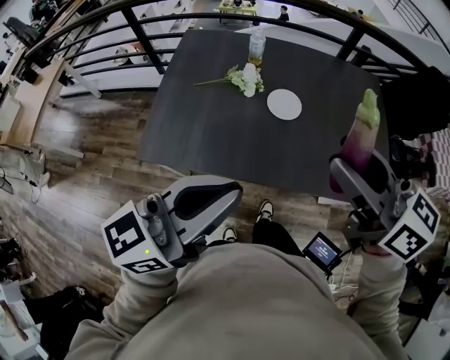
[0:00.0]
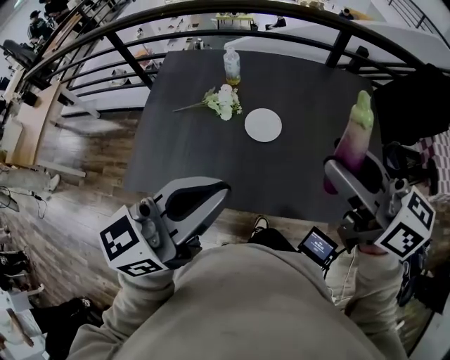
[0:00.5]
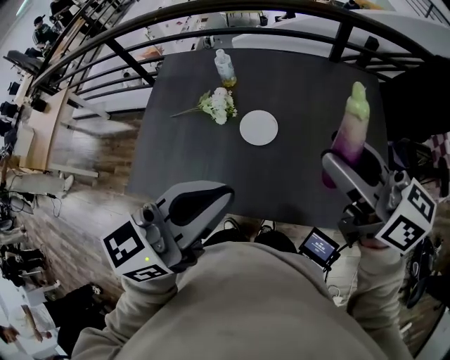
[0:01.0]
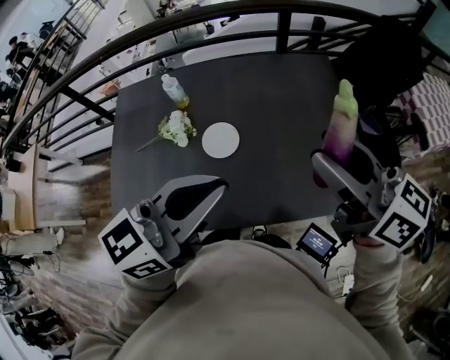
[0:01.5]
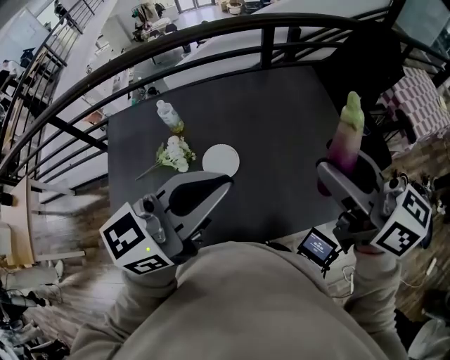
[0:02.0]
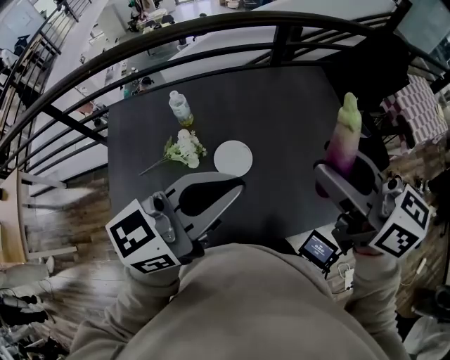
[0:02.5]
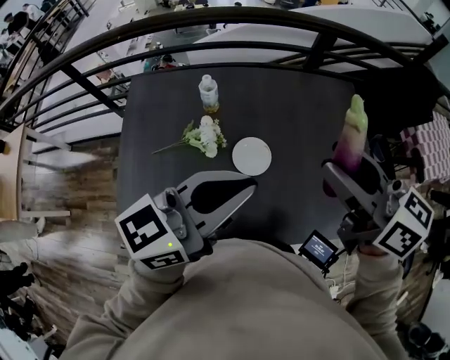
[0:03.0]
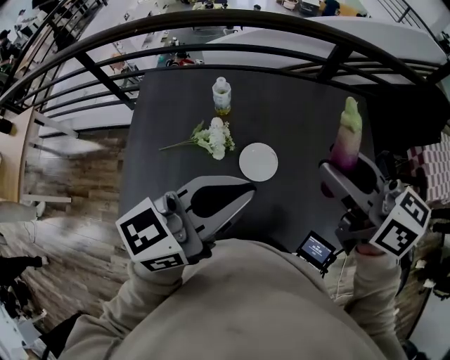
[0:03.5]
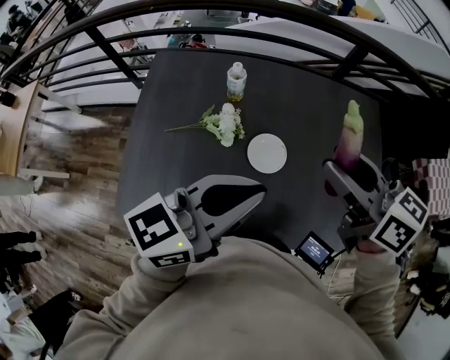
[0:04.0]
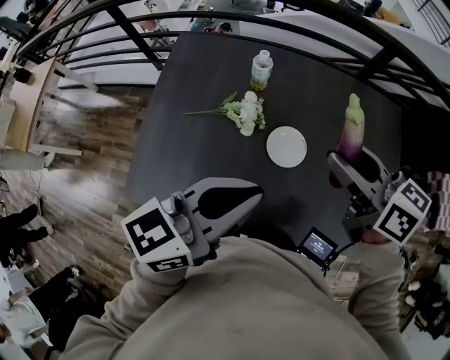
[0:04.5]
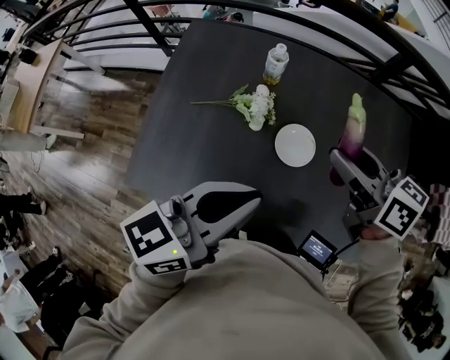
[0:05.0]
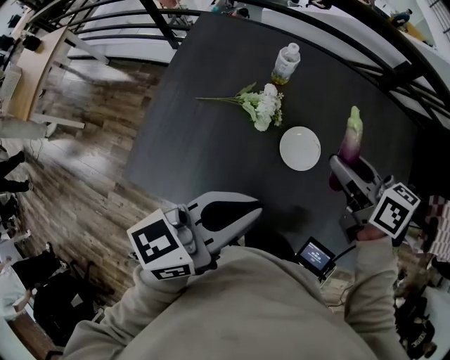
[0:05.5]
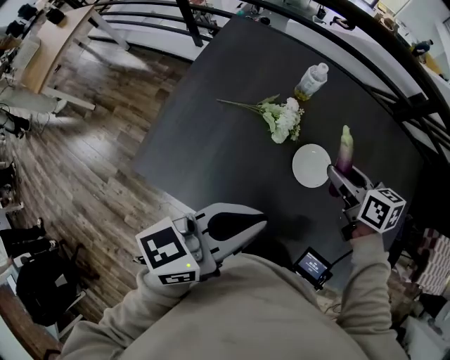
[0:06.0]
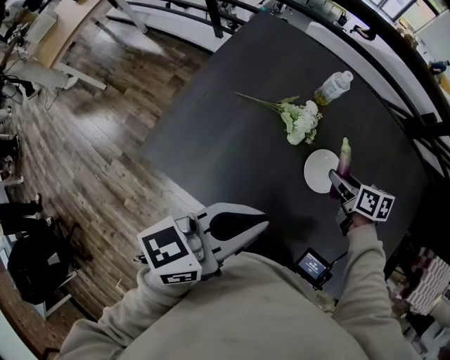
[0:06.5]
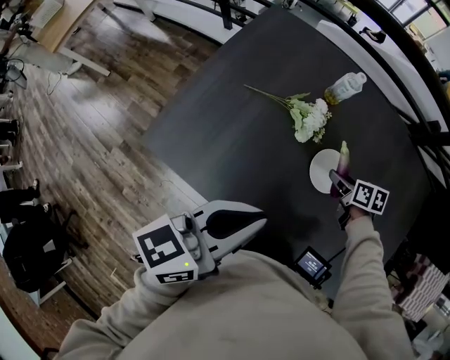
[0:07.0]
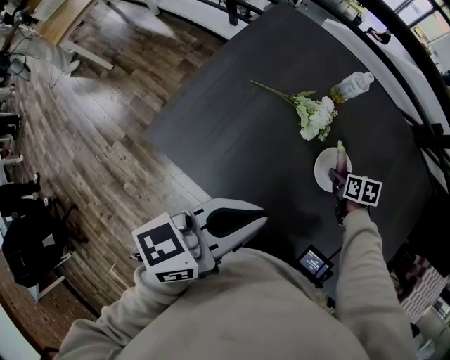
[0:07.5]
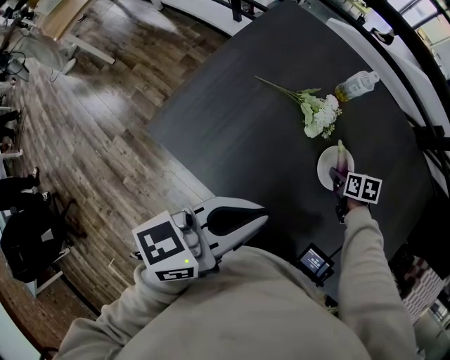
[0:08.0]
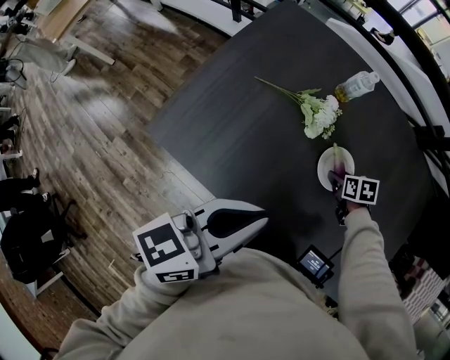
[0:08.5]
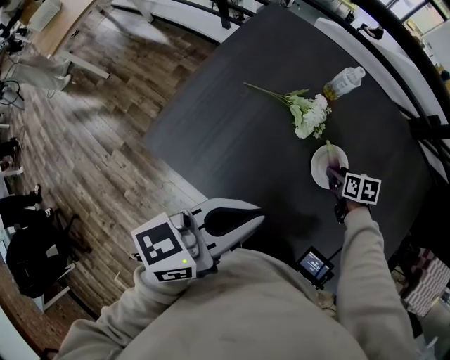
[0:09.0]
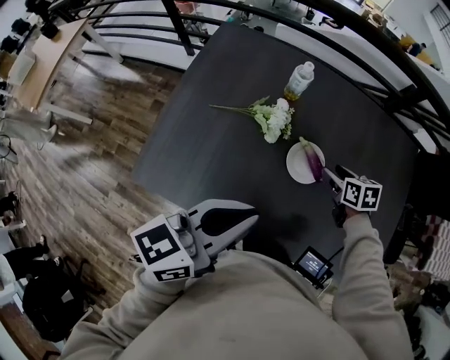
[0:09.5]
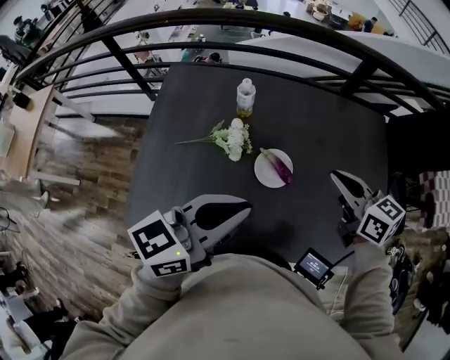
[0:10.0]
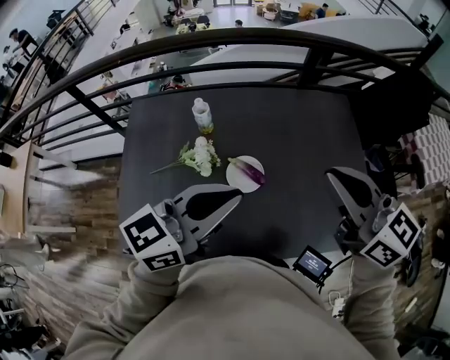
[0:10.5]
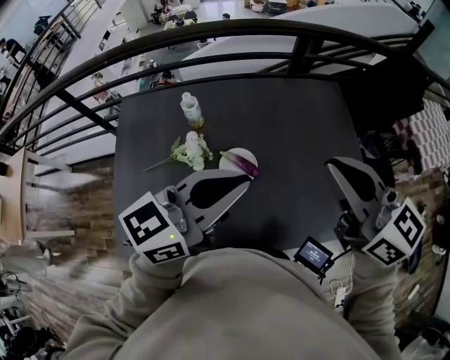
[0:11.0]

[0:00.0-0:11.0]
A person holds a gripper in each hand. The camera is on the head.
0:00.0 to 0:02.0: The left gripper is displaced forward and to the right by some 25 cm, and turns by some 20 degrees. Meanwhile the right gripper travels to the right and forward by roughly 20 cm, and rotates some 20 degrees.
0:02.0 to 0:03.5: The grippers both shift to the left by roughly 15 cm.
0:03.5 to 0:05.5: The right gripper travels downward by some 20 cm, and turns by roughly 20 degrees. Meanwhile the left gripper heads downward and to the left, covering some 10 cm, and changes its angle by approximately 20 degrees.
0:05.5 to 0:07.5: The right gripper shifts some 30 cm downward, and tips its fingers downward by about 40 degrees; the left gripper goes about 5 cm to the left.
0:07.5 to 0:09.0: The grippers make only small movements.
0:09.0 to 0:11.0: The left gripper changes place by some 25 cm, and swivels about 40 degrees; the right gripper goes about 50 cm upward, angles its fingers upward, by roughly 60 degrees, and closes up.

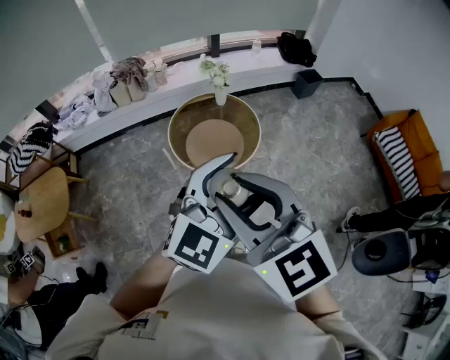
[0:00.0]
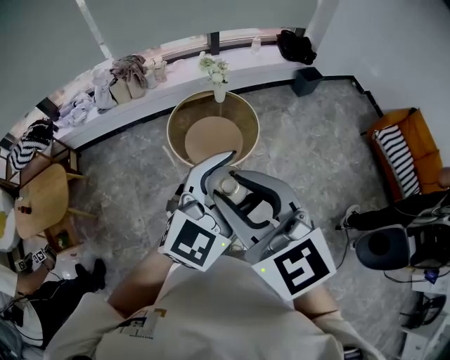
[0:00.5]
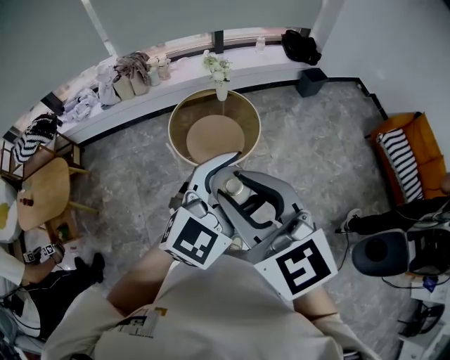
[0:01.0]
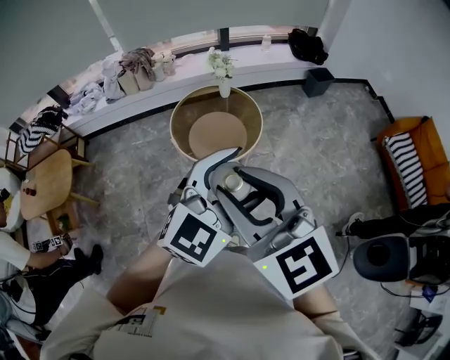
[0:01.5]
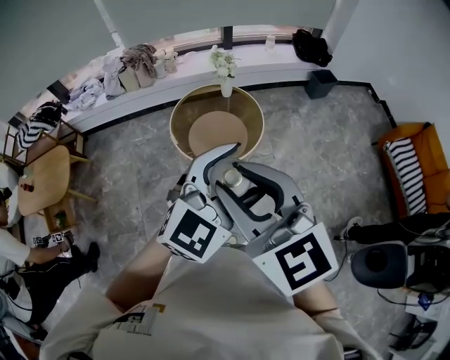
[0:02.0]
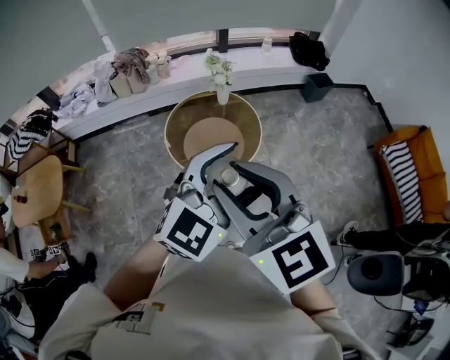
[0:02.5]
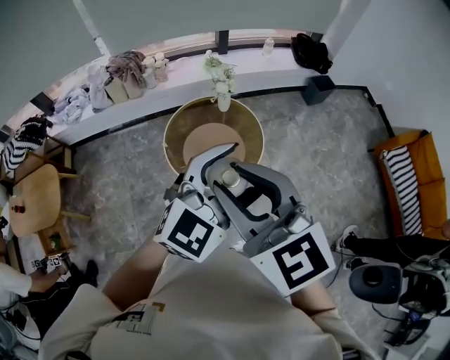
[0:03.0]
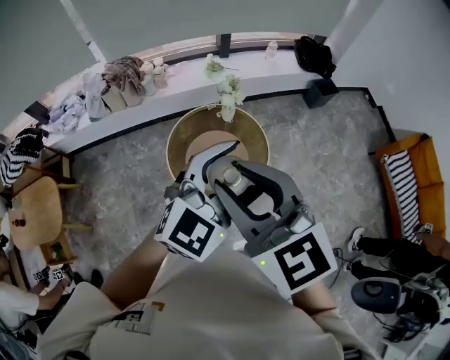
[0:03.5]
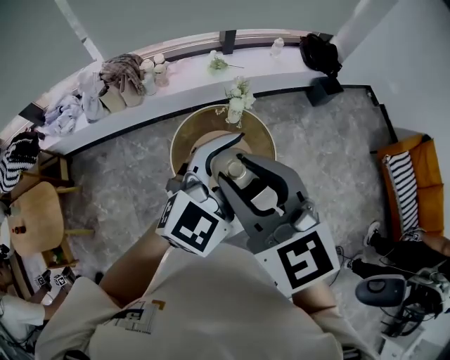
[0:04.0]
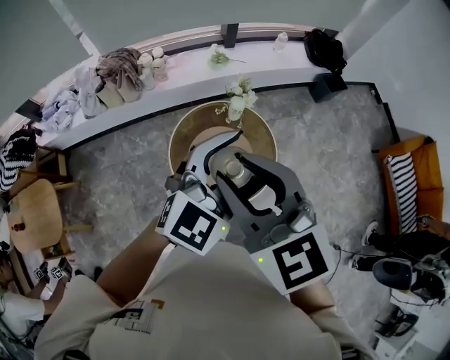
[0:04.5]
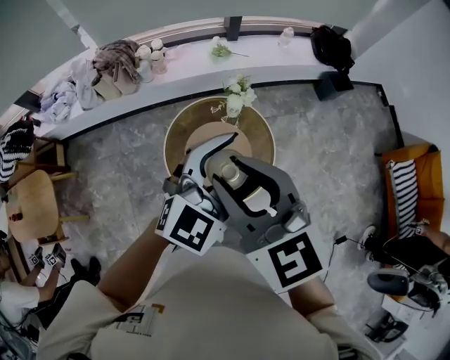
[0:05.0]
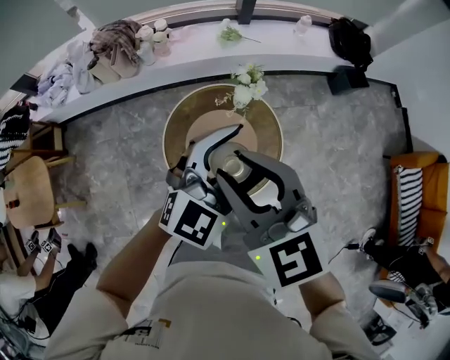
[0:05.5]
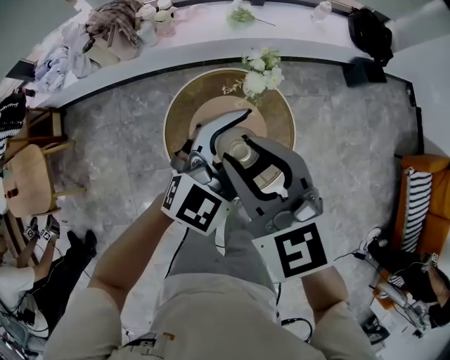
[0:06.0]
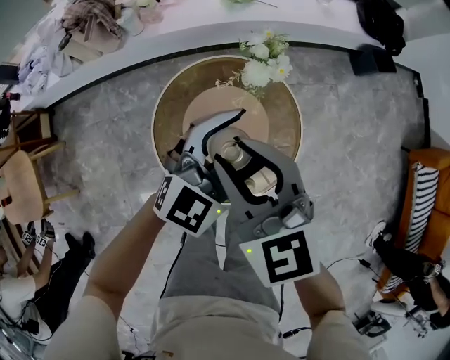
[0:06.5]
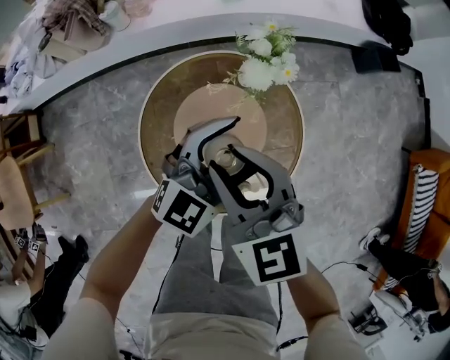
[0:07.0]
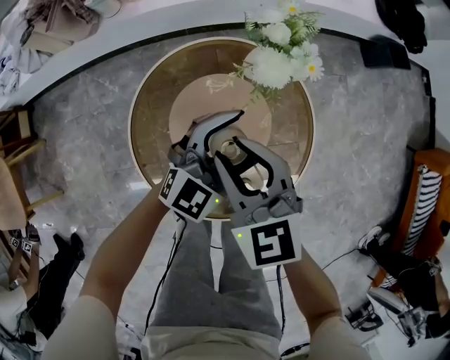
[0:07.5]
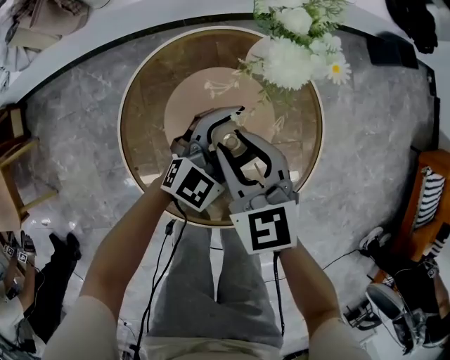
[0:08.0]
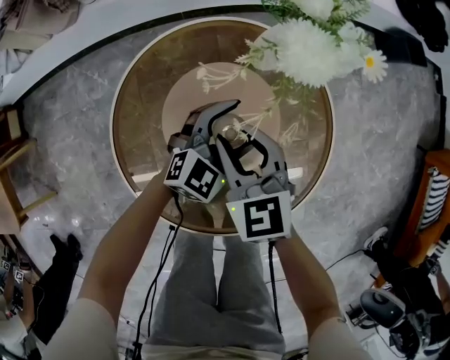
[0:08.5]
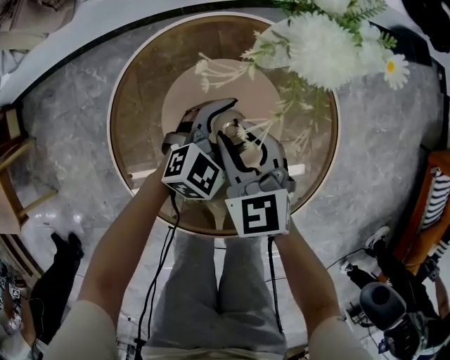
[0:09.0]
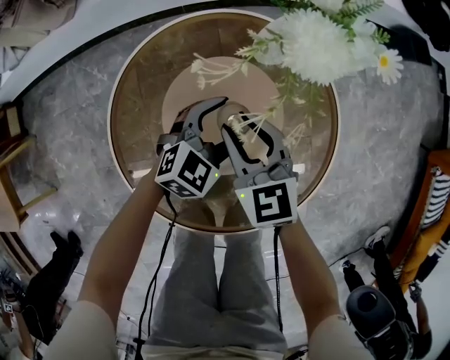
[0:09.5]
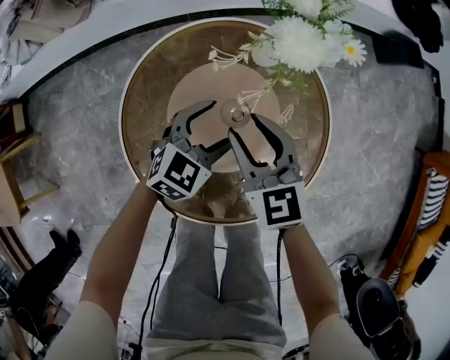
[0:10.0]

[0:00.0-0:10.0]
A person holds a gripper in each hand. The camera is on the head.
0:00.0 to 0:02.0: The two grippers go approximately 10 cm to the right.
0:02.0 to 0:04.0: The two grippers go roughly 40 cm forward and to the left.
0:04.0 to 0:06.0: The grippers both shift downward and forward by roughly 25 cm.
0:06.0 to 0:08.0: The two grippers go about 40 cm downward.
0:08.0 to 0:10.0: The left gripper travels downward and to the left by approximately 10 cm, and turns by some 20 degrees.

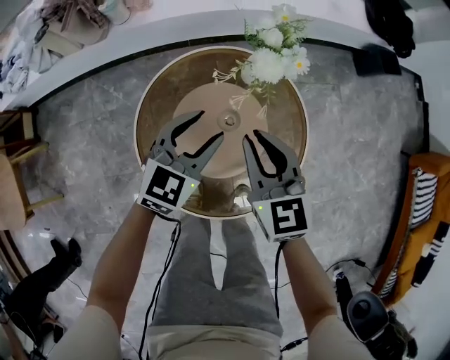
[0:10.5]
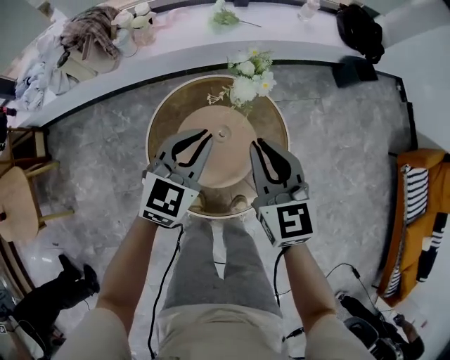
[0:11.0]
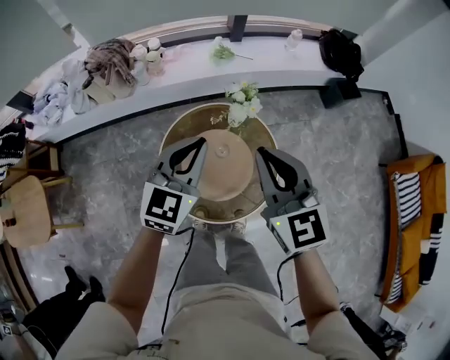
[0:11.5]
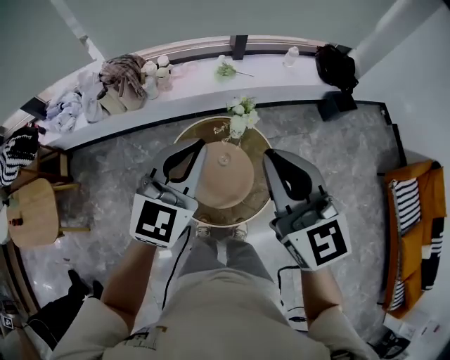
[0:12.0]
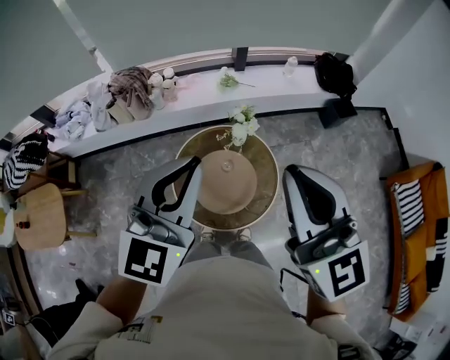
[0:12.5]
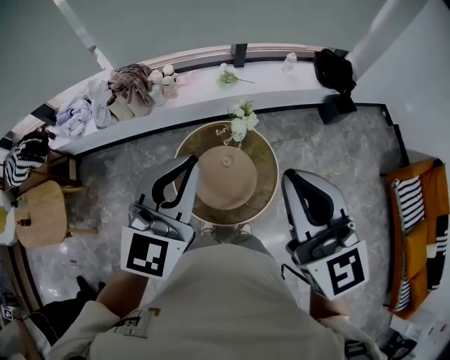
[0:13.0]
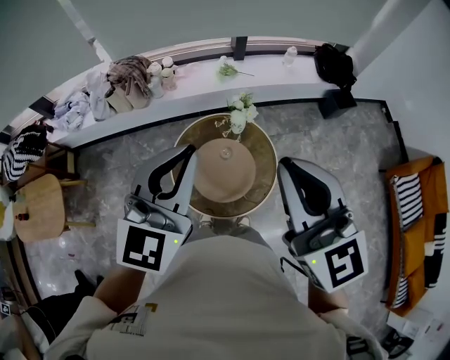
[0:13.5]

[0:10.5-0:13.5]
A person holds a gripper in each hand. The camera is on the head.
0:10.5 to 0:12.0: Both grippers move upward, roughly 50 cm. The right gripper turns by approximately 20 degrees. Meanwhile the left gripper turns by some 20 degrees, and closes.
0:12.0 to 0:13.5: The grippers both shift upward and backward by some 10 cm.

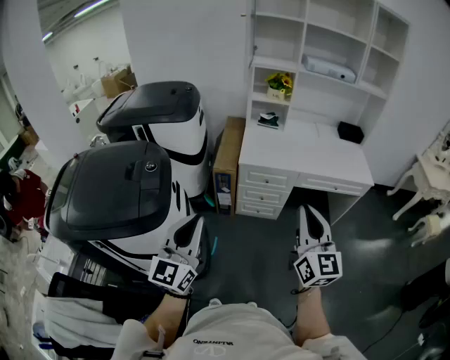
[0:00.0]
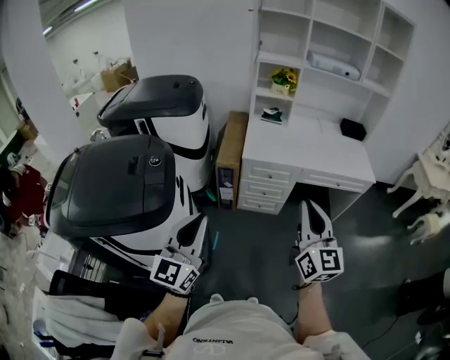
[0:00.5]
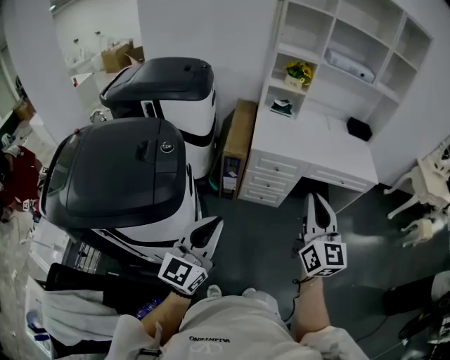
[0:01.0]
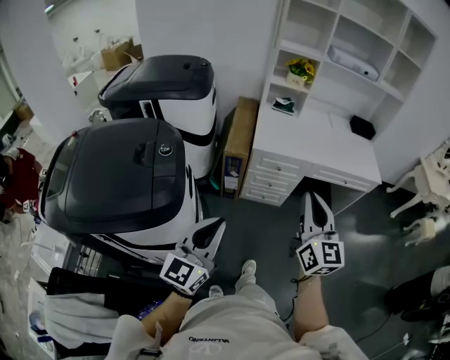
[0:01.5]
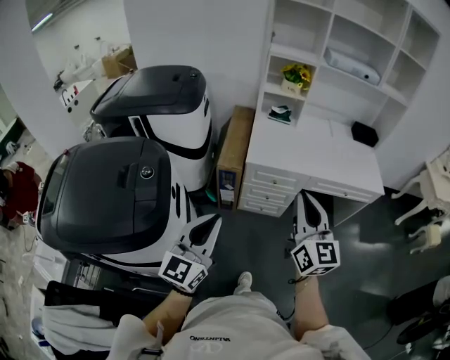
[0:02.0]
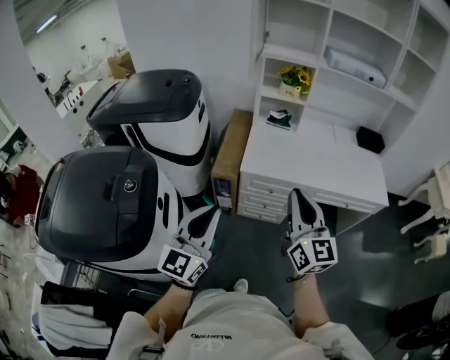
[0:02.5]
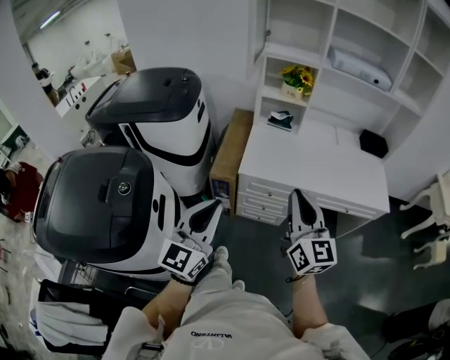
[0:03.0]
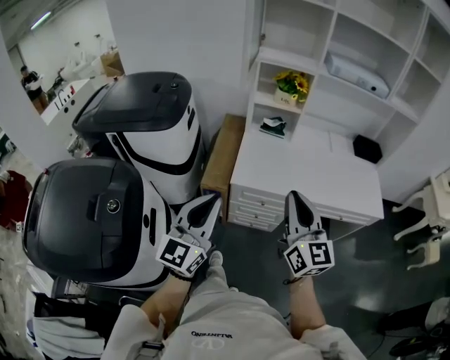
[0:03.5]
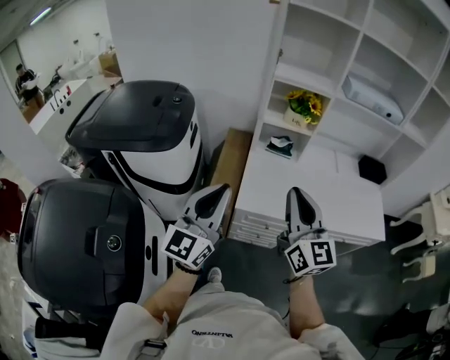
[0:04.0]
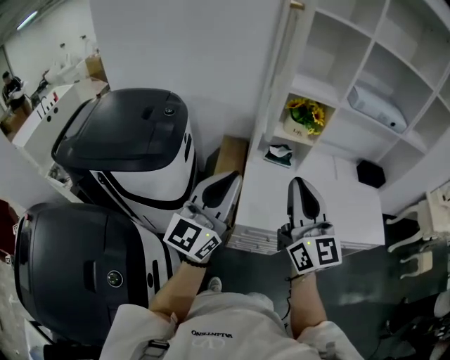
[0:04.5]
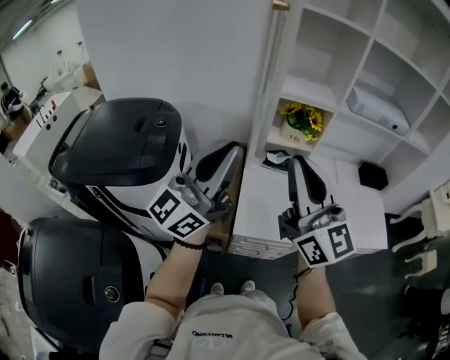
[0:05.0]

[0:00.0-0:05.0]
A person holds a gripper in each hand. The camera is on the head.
0:00.0 to 0:02.5: The grippers both shift forward by roughly 20 cm.
0:02.5 to 0:05.0: Both grippers travel together forward and upward, about 40 cm. The left gripper turns by some 40 degrees.
